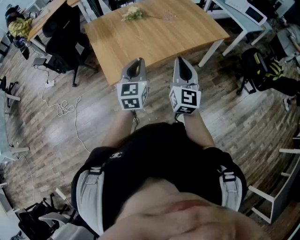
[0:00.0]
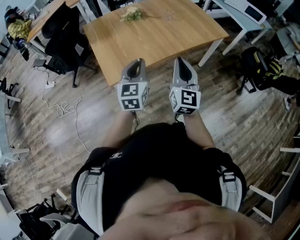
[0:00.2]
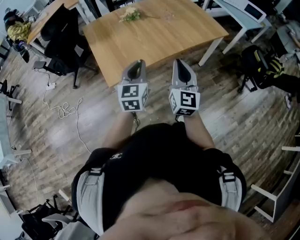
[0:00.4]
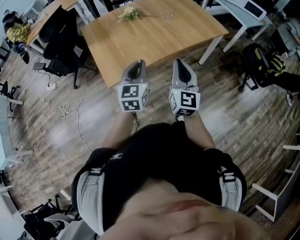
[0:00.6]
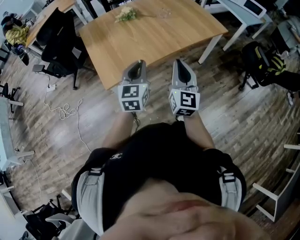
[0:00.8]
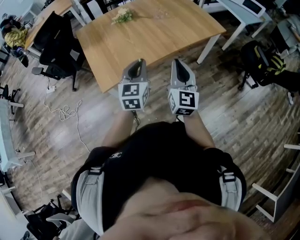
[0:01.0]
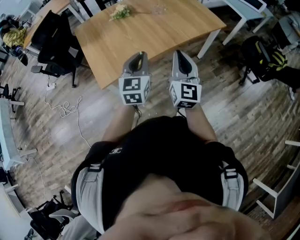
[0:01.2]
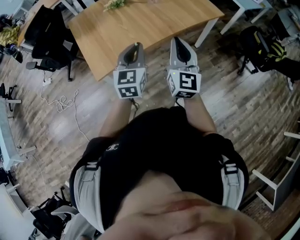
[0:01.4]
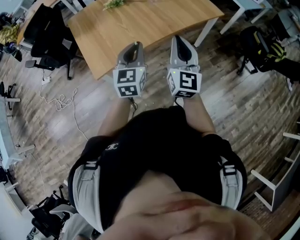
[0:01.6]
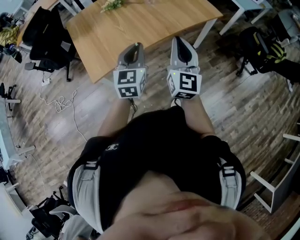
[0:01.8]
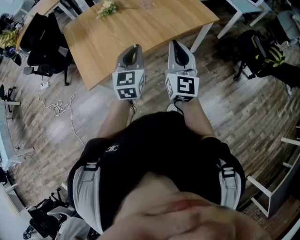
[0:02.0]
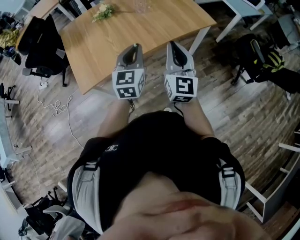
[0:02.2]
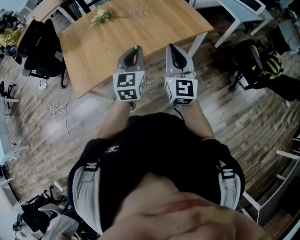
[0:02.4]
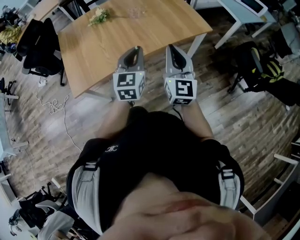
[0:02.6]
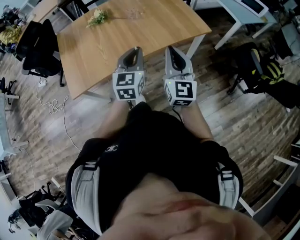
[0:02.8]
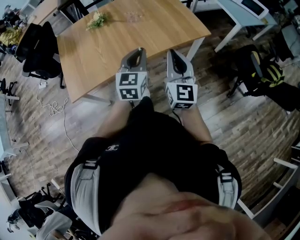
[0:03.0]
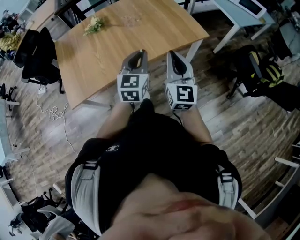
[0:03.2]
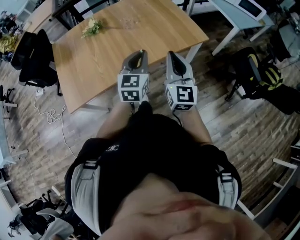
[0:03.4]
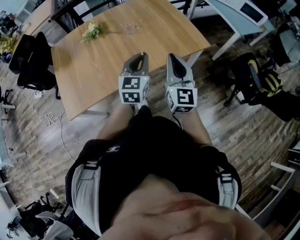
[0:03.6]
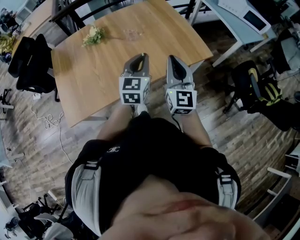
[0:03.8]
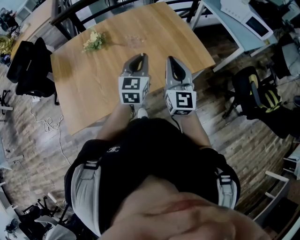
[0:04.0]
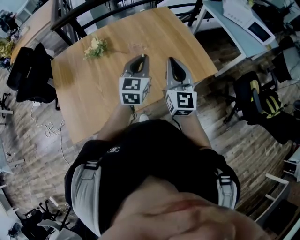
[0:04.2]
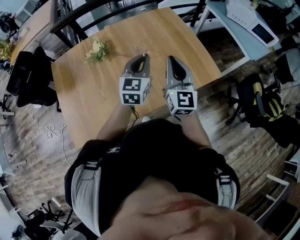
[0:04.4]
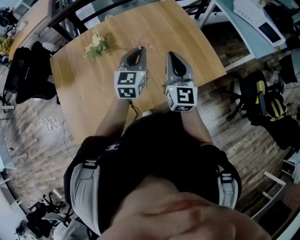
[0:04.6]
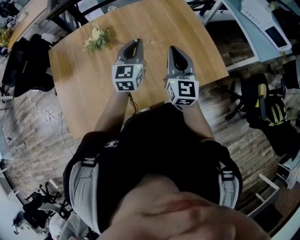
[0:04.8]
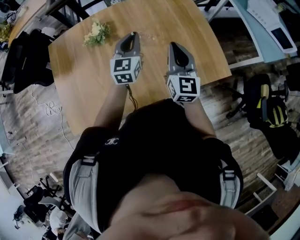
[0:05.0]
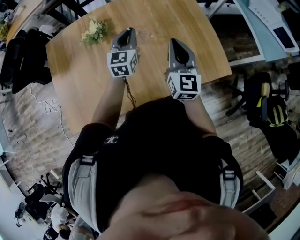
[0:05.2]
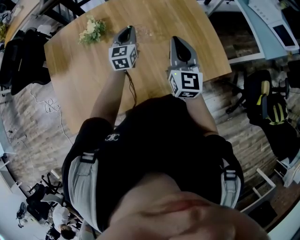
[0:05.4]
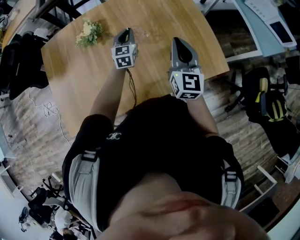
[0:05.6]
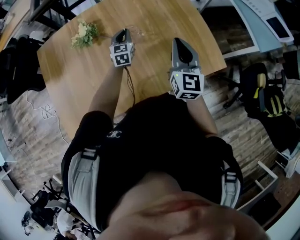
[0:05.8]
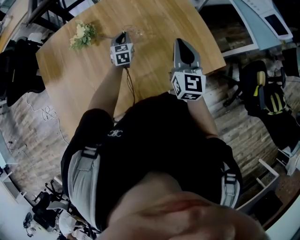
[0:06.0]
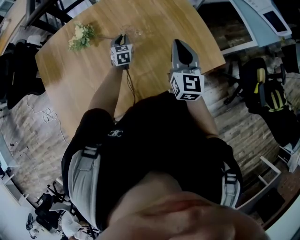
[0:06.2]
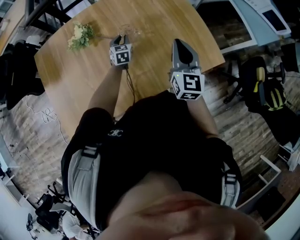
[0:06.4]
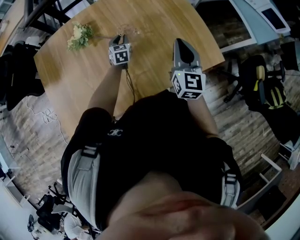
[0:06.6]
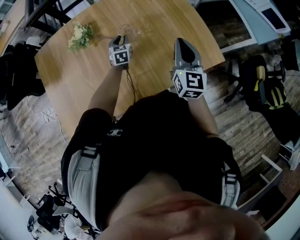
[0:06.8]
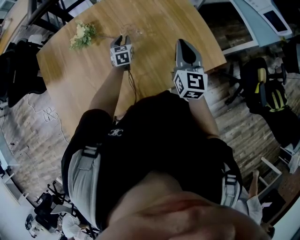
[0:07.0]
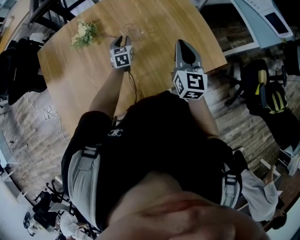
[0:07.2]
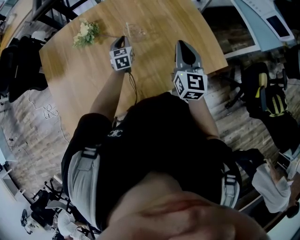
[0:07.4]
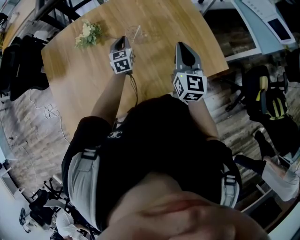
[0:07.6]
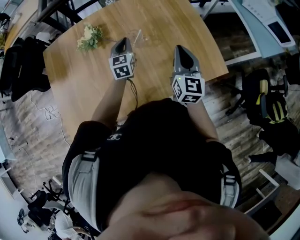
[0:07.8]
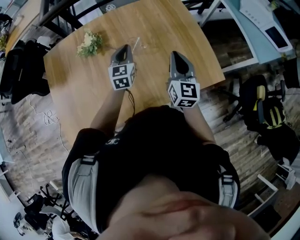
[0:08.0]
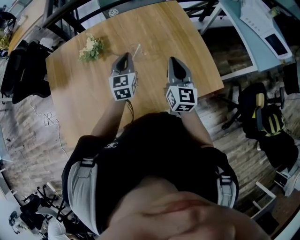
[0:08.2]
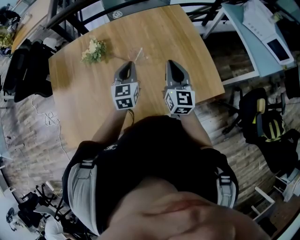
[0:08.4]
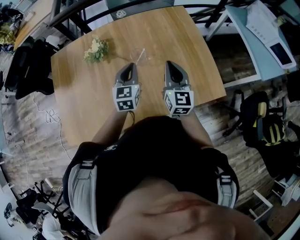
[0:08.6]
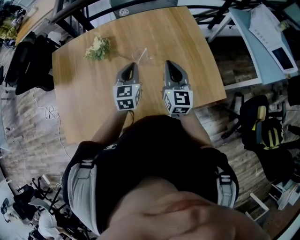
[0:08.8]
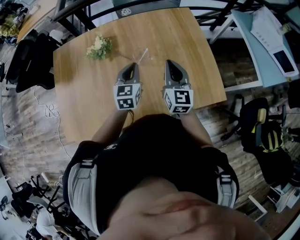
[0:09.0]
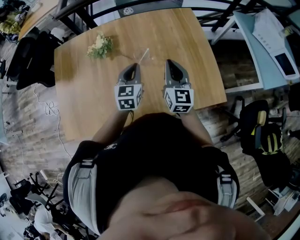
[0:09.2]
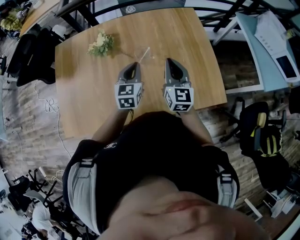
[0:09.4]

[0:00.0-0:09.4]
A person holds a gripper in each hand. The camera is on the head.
0:00.0 to 0:01.6: The two grippers go roughly 10 cm to the right.
0:01.6 to 0:03.2: The two grippers go some 25 cm to the right and forward.
0:03.2 to 0:04.8: Both grippers travel together forward, approximately 35 cm.
0:04.8 to 0:06.2: The left gripper moves downward and forward, roughly 25 cm, and turns by roughly 20 degrees; the right gripper shifts roughly 5 cm to the right.
0:06.2 to 0:07.8: The left gripper goes approximately 10 cm upward.
0:07.8 to 0:09.4: The right gripper moves forward, about 5 cm, while the left gripper moves backward and upward, about 10 cm.

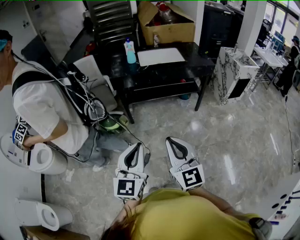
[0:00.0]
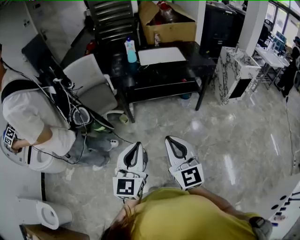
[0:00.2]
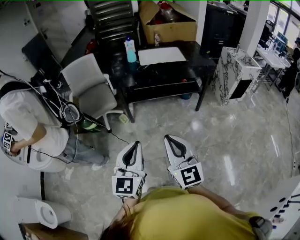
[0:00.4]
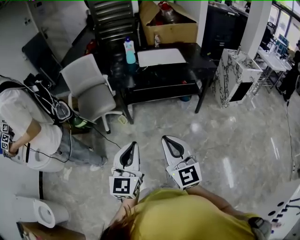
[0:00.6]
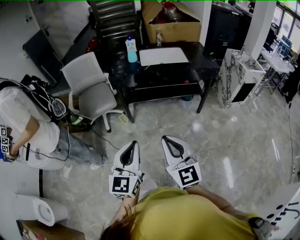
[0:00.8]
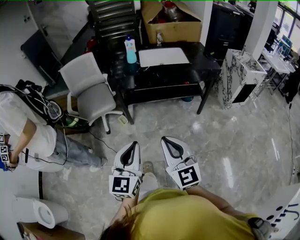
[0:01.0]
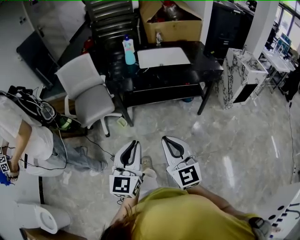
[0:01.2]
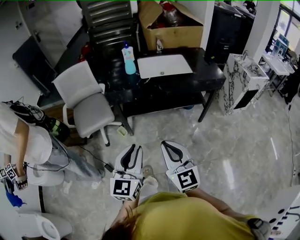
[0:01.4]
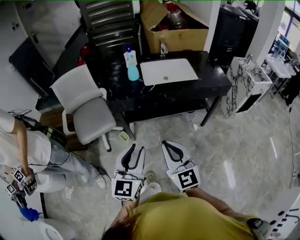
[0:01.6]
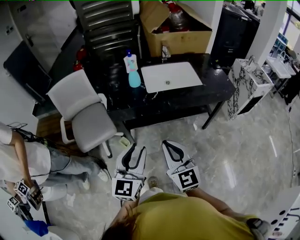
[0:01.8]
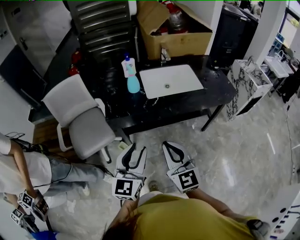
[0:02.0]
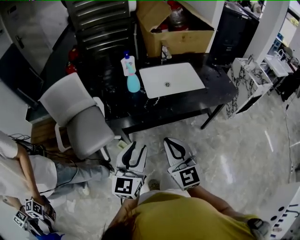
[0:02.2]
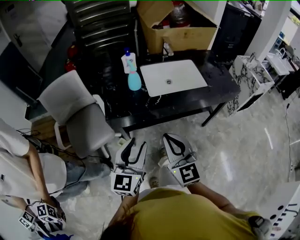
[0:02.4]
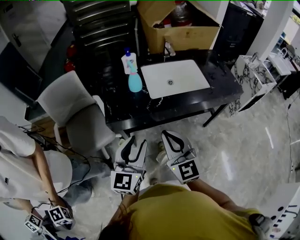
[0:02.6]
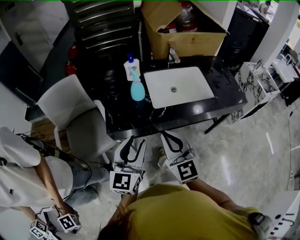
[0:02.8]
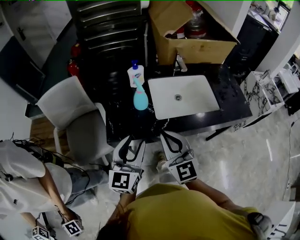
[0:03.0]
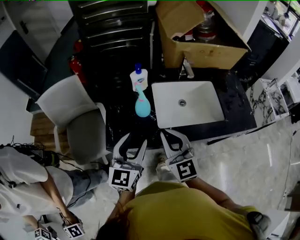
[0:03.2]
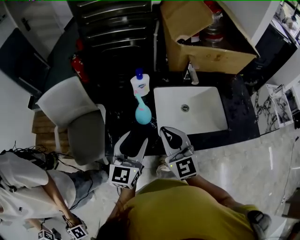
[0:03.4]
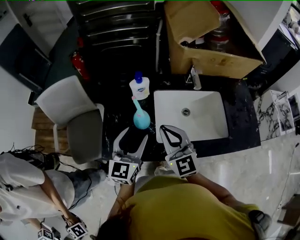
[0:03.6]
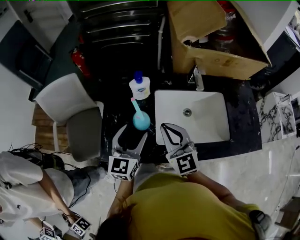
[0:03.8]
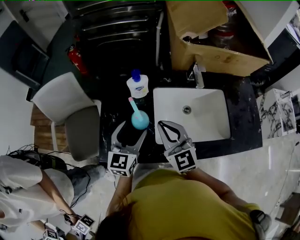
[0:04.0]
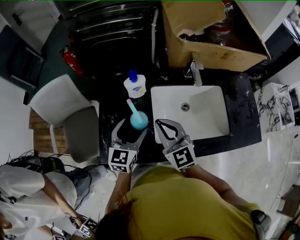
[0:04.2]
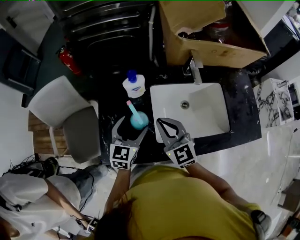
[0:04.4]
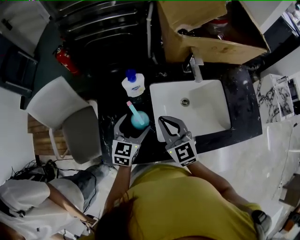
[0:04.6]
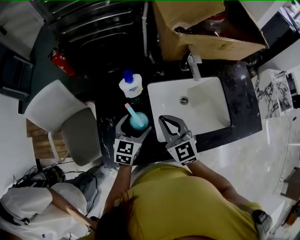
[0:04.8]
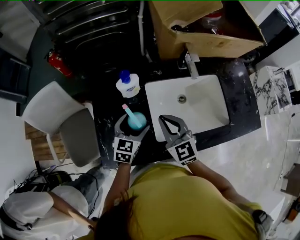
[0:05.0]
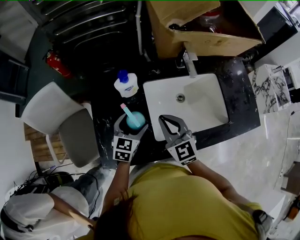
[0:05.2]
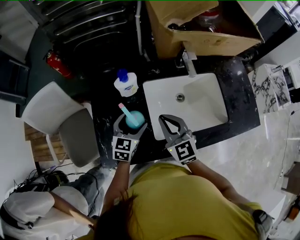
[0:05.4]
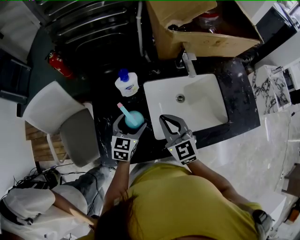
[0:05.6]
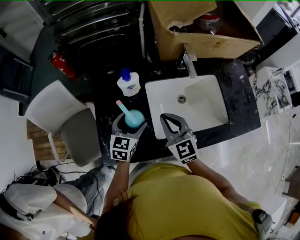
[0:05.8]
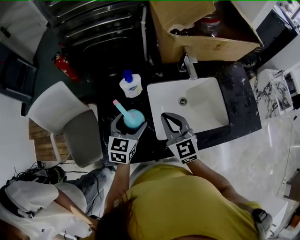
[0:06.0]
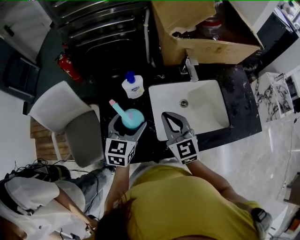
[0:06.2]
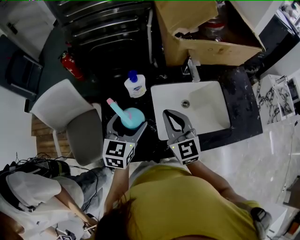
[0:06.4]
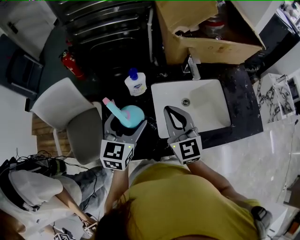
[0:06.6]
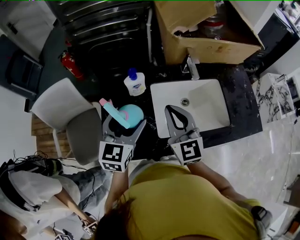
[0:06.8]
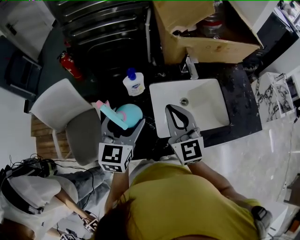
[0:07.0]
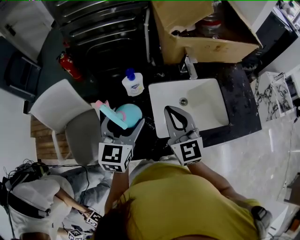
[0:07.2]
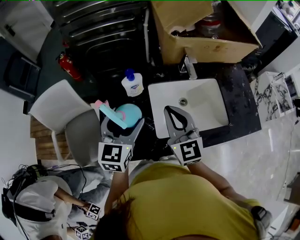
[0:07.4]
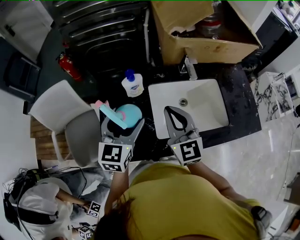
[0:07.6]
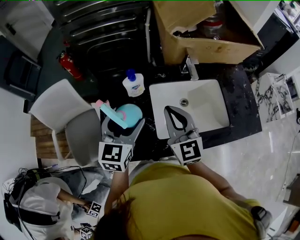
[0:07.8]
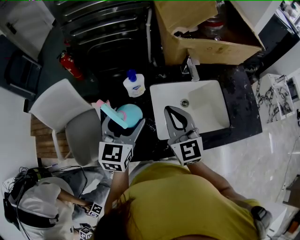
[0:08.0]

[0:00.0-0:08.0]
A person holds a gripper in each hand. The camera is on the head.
0:00.0 to 0:01.6: Both grippers travel together forward, about 30 cm.
0:01.6 to 0:03.2: The two grippers travel together, forward, roughly 40 cm.
0:03.2 to 0:04.8: The two grippers go about 25 cm forward and downward. The left gripper rotates about 30 degrees, and opens up.
0:04.8 to 0:06.4: The right gripper moves upward, approximately 5 cm; the left gripper goes approximately 10 cm upward.
0:06.4 to 0:08.0: The grippers make only small movements.

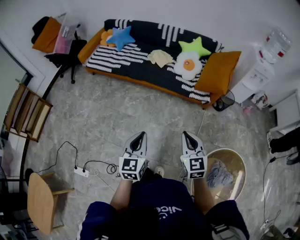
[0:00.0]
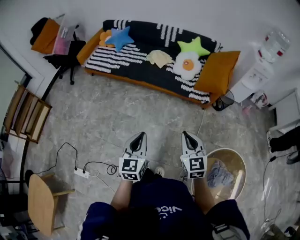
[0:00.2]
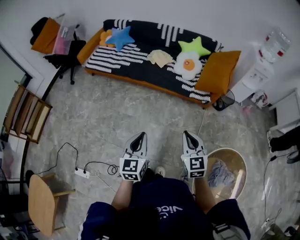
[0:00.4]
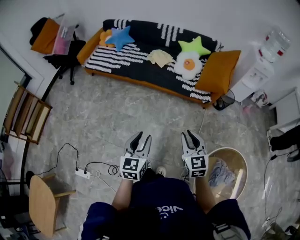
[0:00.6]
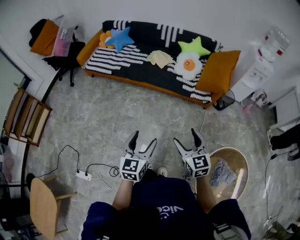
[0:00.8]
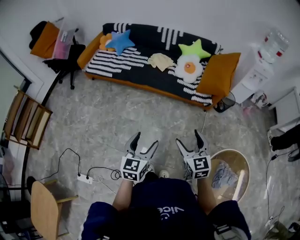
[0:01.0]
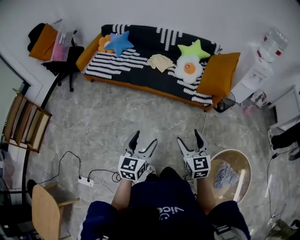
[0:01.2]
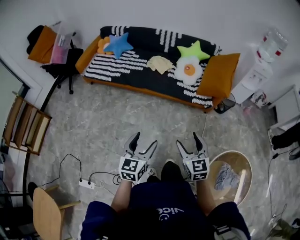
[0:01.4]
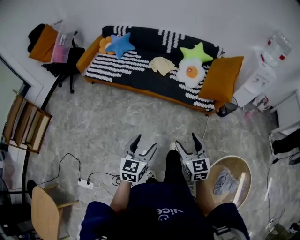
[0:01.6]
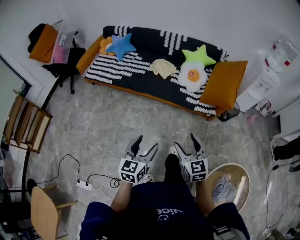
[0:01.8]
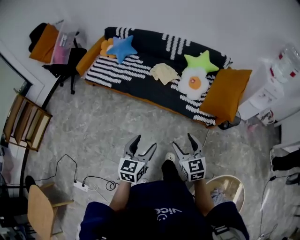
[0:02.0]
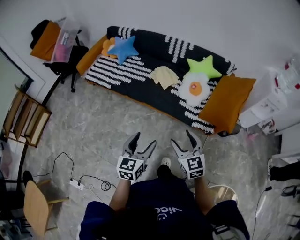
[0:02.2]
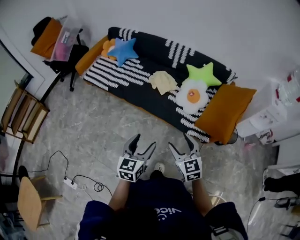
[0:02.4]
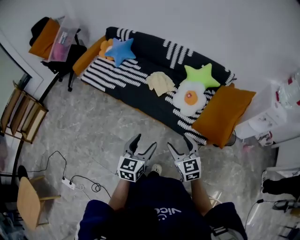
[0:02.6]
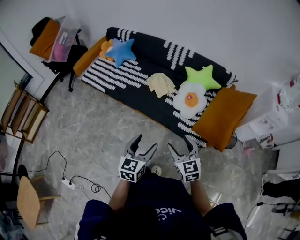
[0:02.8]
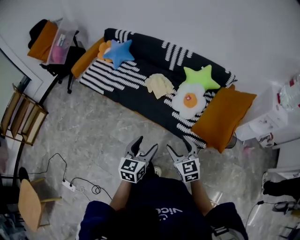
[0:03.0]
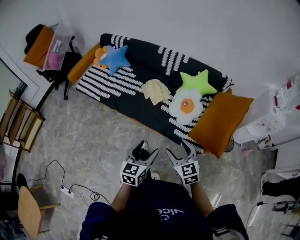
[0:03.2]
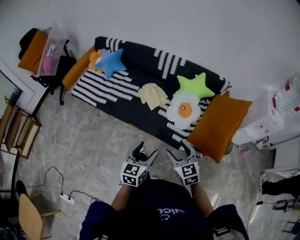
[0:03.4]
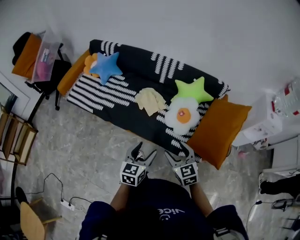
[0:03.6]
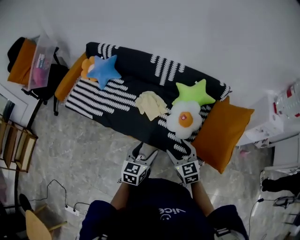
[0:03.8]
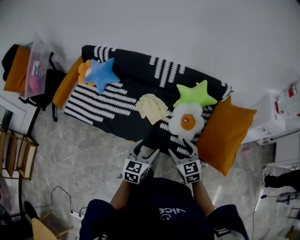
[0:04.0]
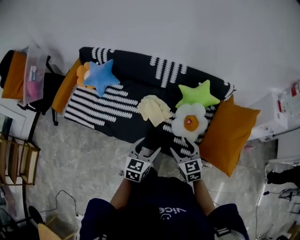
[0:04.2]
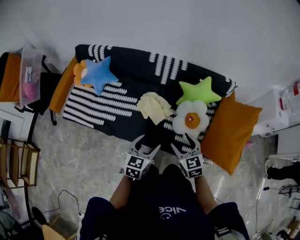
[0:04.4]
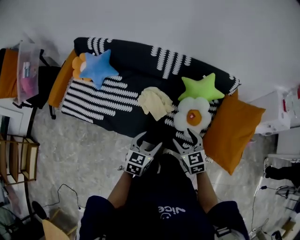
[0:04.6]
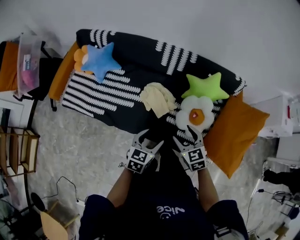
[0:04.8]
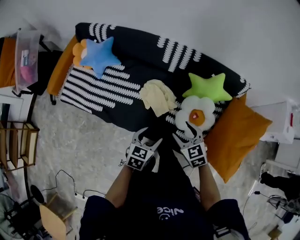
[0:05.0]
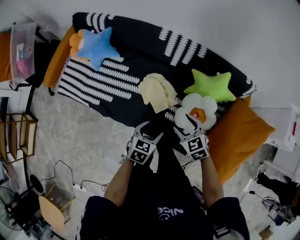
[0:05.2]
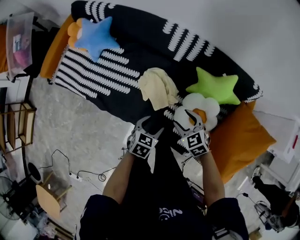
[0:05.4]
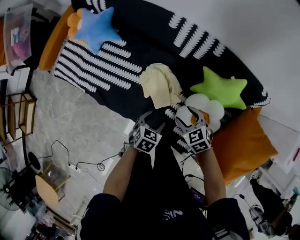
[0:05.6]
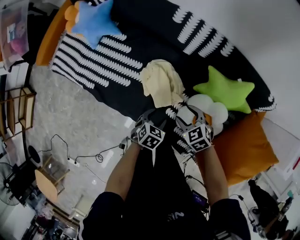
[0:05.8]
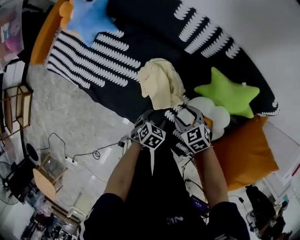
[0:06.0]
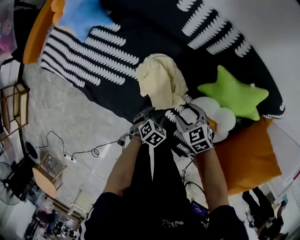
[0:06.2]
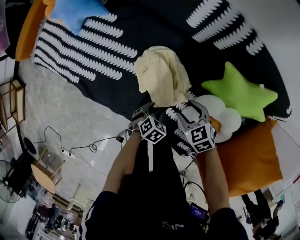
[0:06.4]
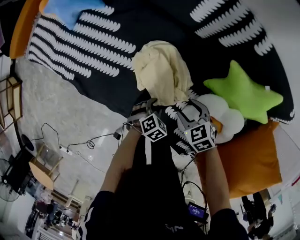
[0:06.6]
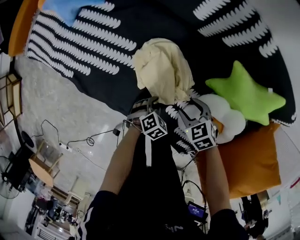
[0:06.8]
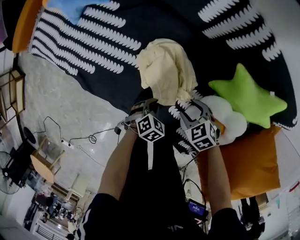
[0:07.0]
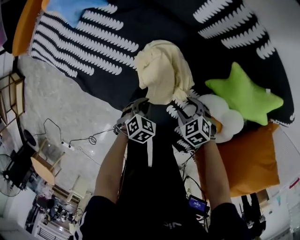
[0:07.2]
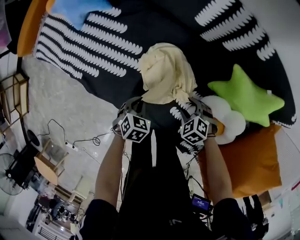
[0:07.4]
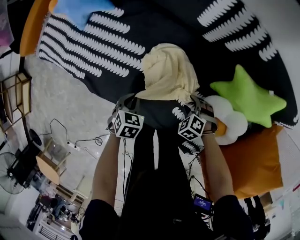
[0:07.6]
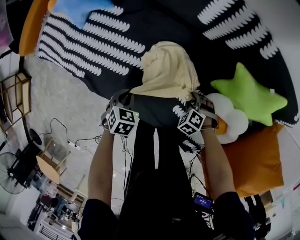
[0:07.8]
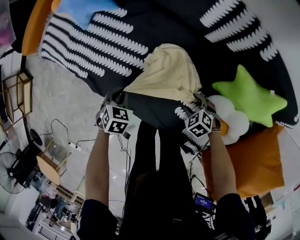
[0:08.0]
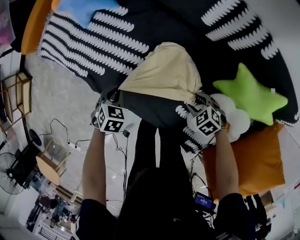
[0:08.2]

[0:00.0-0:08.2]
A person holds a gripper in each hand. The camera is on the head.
0:00.0 to 0:01.6: Both grippers move forward, some 5 cm. The left gripper opens; the right gripper opens its fingers.
0:01.6 to 0:03.2: Both grippers move forward and to the right, roughly 35 cm.
0:03.2 to 0:05.0: The two grippers go about 35 cm forward. The left gripper rotates some 30 degrees.
0:05.0 to 0:06.6: Both grippers move downward, roughly 35 cm. The right gripper rotates roughly 30 degrees, while the left gripper points its fingers approximately 40 degrees further downward, and closes.
0:06.6 to 0:08.2: The left gripper changes place by about 25 cm, changes its angle by about 30 degrees, and closes.
